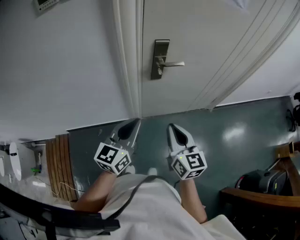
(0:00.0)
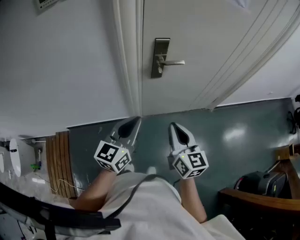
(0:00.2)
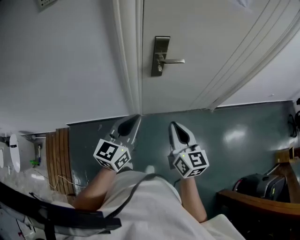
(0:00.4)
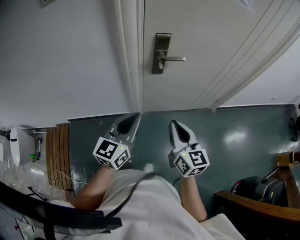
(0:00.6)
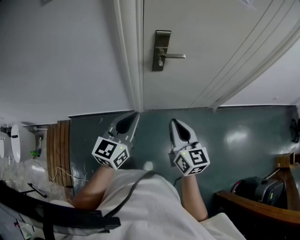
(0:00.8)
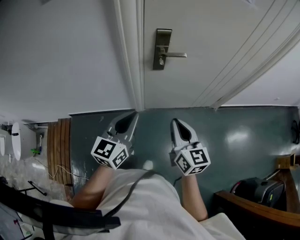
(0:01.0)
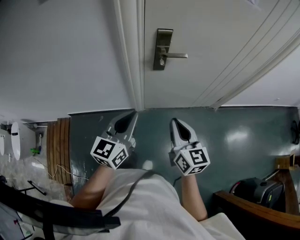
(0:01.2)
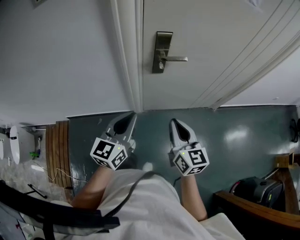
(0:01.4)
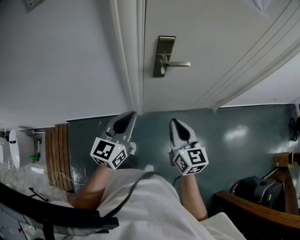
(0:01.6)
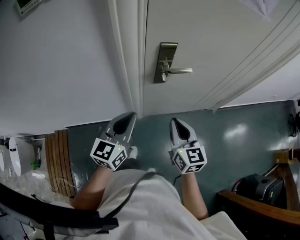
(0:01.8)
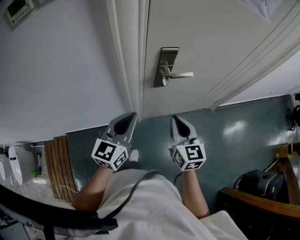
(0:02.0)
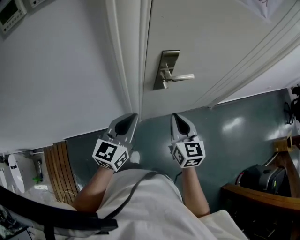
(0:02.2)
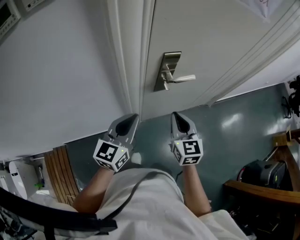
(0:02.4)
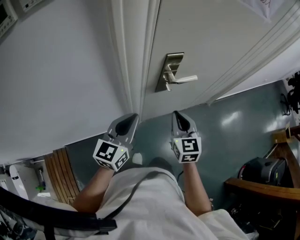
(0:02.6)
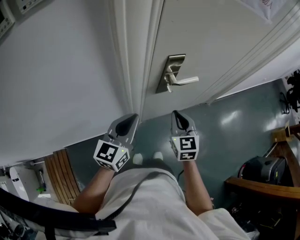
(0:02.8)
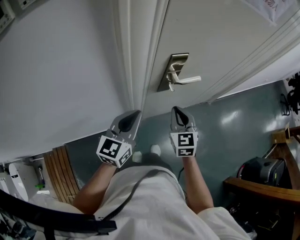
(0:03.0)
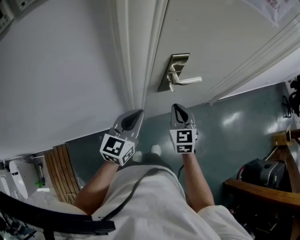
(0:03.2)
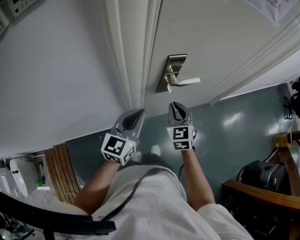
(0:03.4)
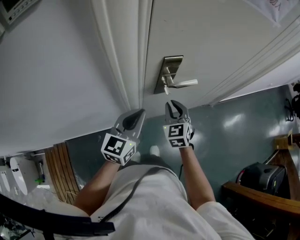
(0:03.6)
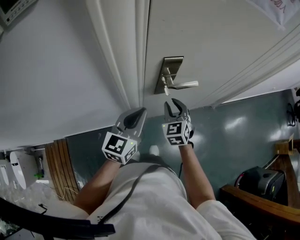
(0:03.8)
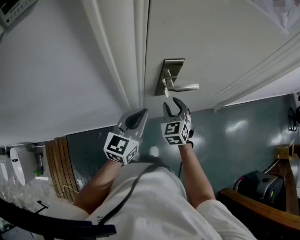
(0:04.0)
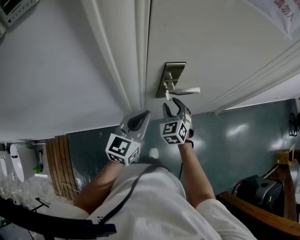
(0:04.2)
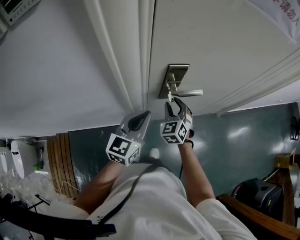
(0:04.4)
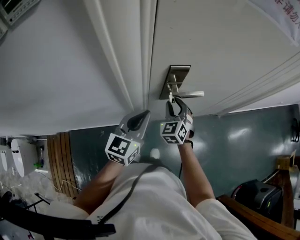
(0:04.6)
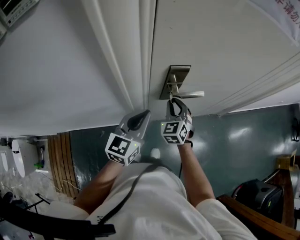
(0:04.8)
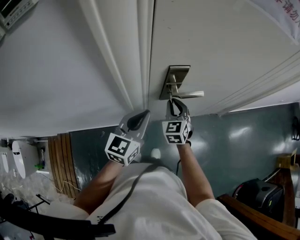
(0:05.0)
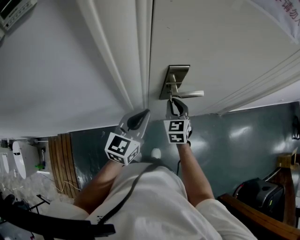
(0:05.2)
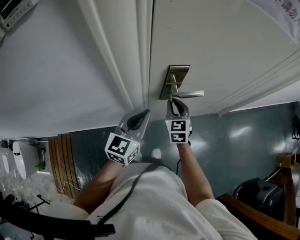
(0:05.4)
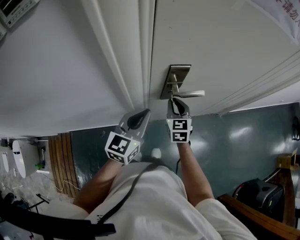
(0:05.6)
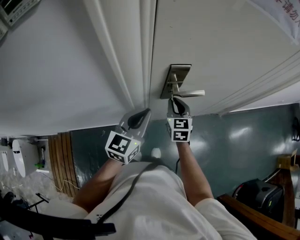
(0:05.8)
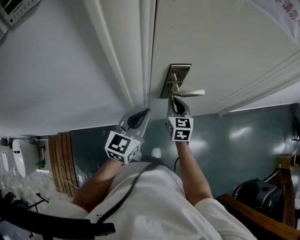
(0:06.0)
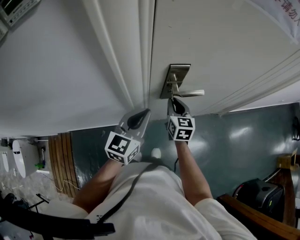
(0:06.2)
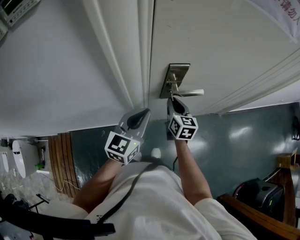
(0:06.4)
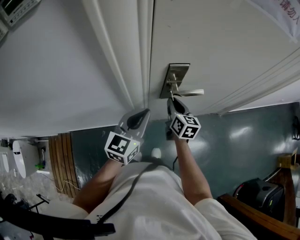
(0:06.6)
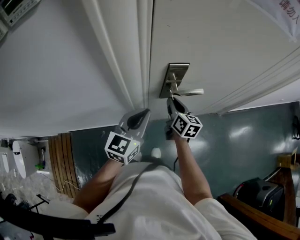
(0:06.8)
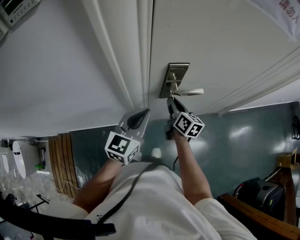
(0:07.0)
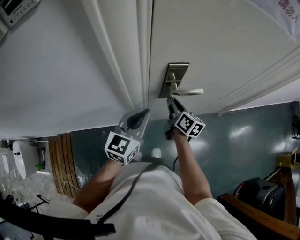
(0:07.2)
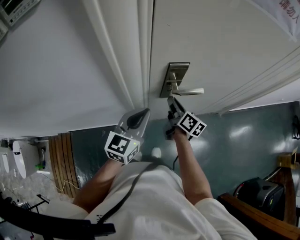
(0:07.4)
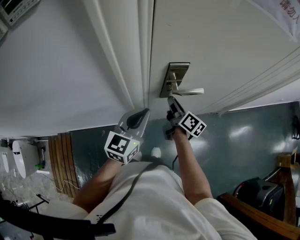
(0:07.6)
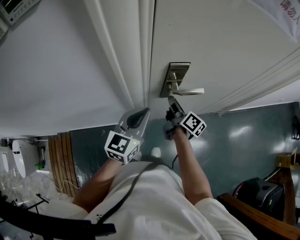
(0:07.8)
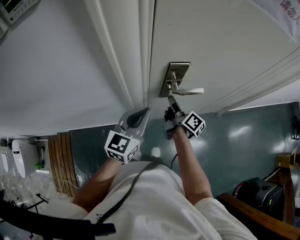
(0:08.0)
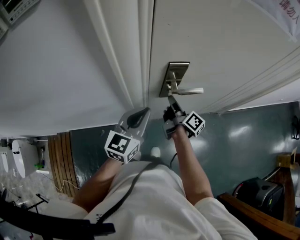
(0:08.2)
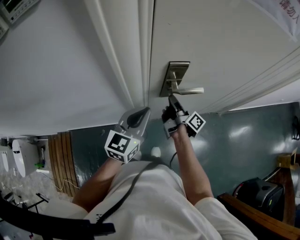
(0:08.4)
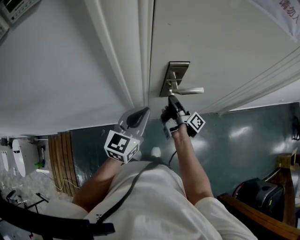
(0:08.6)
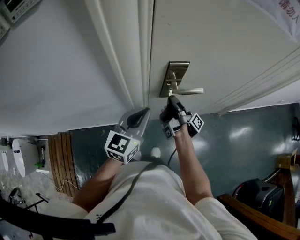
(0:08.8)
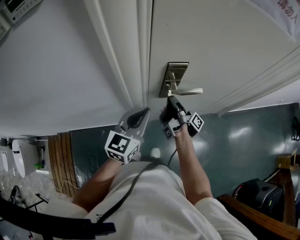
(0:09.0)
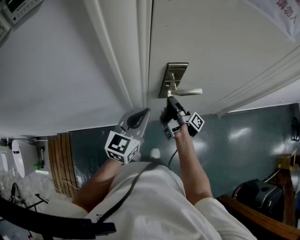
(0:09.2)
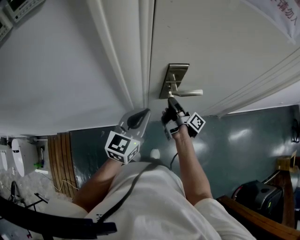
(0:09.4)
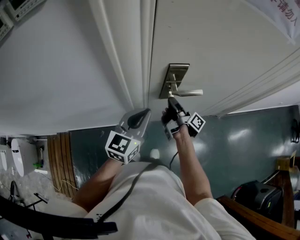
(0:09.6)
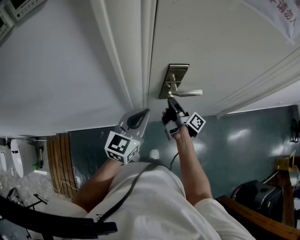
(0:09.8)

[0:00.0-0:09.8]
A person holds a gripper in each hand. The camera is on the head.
0:00.0 to 0:01.4: The right gripper ends up some 5 cm from where it was.
0:01.4 to 0:02.8: The two grippers go roughly 20 cm forward and to the left. The right gripper rotates approximately 30 degrees.
0:02.8 to 0:04.2: The right gripper travels forward and downward by about 10 cm, changes its angle by about 30 degrees, and opens, while the left gripper goes approximately 10 cm to the right and forward.
0:04.2 to 0:05.6: The right gripper swivels roughly 20 degrees, and closes.
0:05.6 to 0:07.0: The right gripper twists about 40 degrees clockwise, seen from behind.
0:07.0 to 0:08.4: The right gripper rolls clockwise, seen from behind, by some 50 degrees.

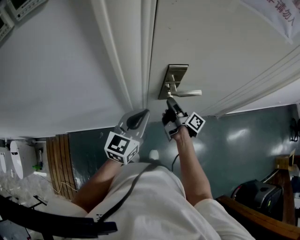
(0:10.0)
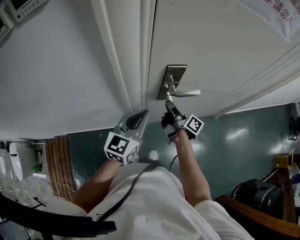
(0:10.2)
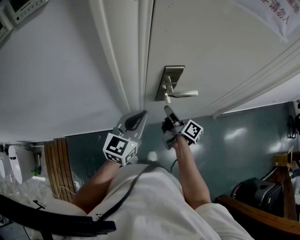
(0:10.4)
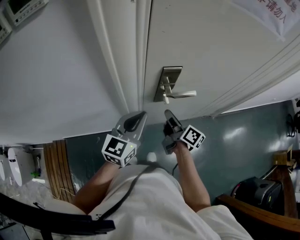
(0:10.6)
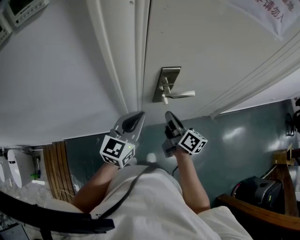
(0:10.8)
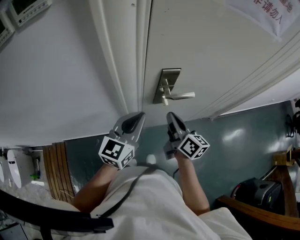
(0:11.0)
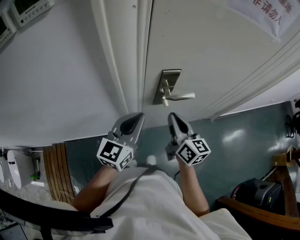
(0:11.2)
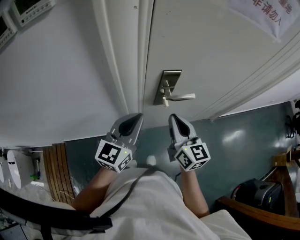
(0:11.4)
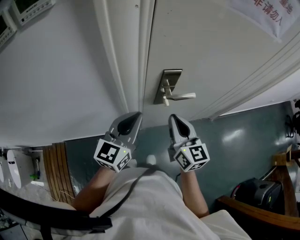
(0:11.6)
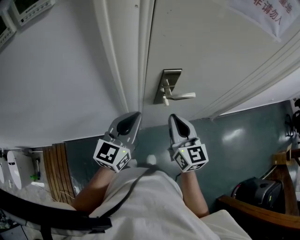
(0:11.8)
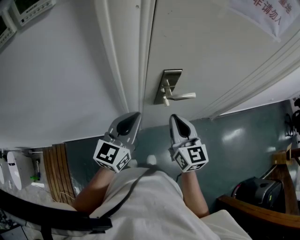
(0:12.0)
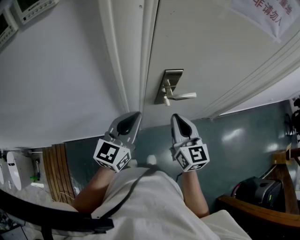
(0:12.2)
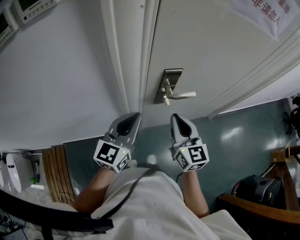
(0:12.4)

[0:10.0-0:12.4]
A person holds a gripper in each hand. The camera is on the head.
0:10.0 to 0:11.2: The right gripper goes about 15 cm upward and backward, rolls counterclockwise, seen from behind, by approximately 60 degrees, and closes its fingers.
0:11.2 to 0:12.4: The right gripper changes its angle by roughly 20 degrees.

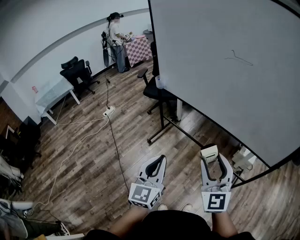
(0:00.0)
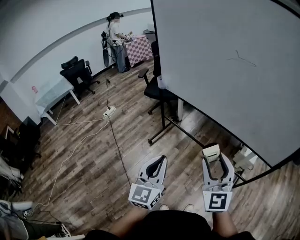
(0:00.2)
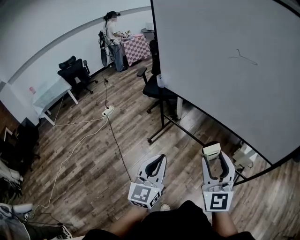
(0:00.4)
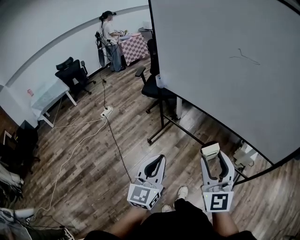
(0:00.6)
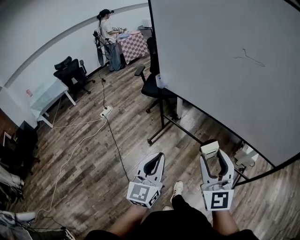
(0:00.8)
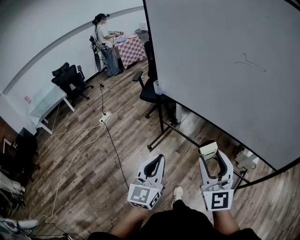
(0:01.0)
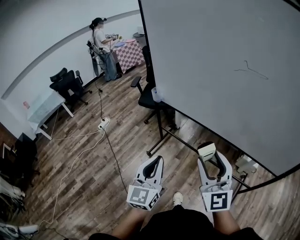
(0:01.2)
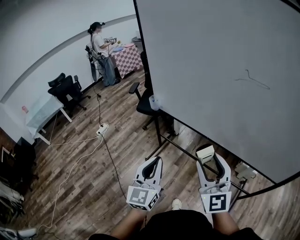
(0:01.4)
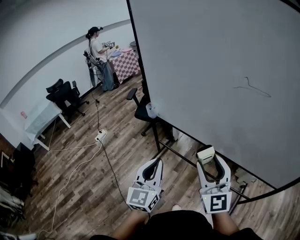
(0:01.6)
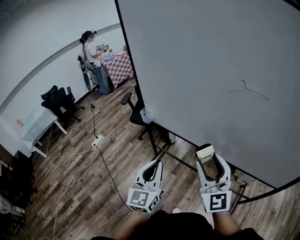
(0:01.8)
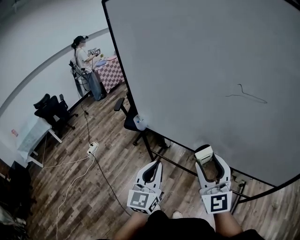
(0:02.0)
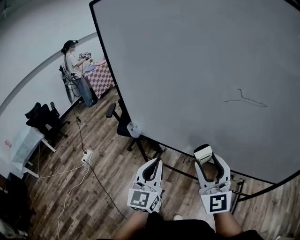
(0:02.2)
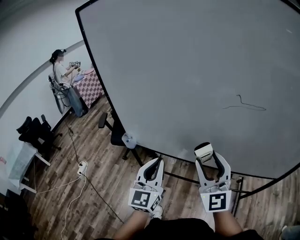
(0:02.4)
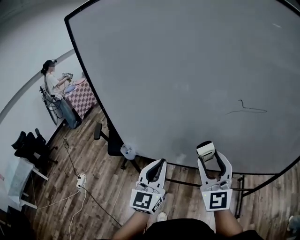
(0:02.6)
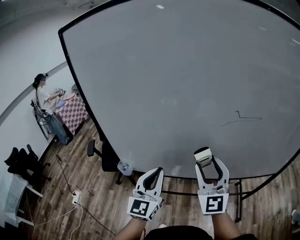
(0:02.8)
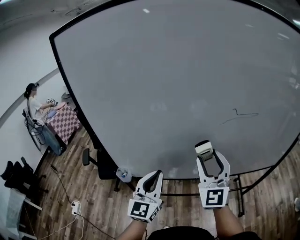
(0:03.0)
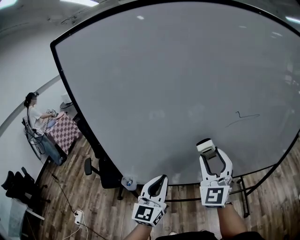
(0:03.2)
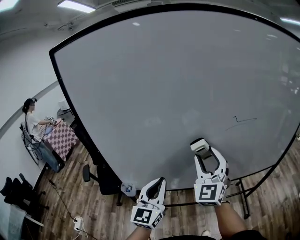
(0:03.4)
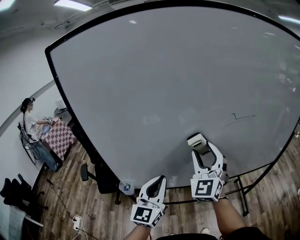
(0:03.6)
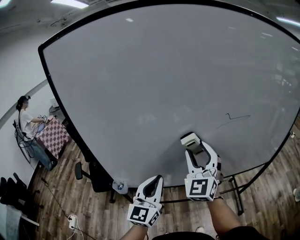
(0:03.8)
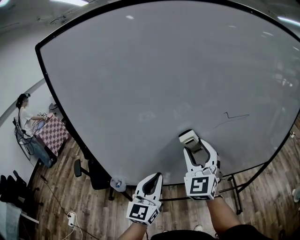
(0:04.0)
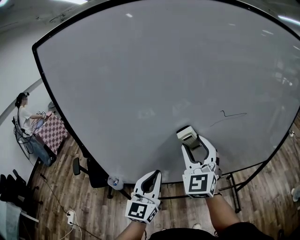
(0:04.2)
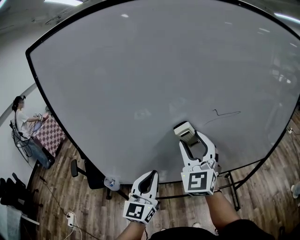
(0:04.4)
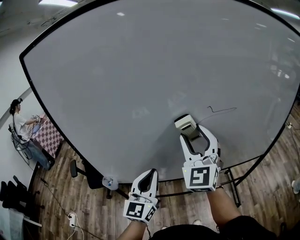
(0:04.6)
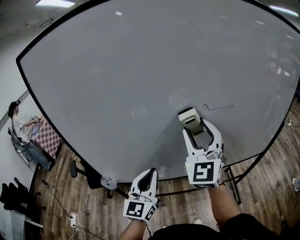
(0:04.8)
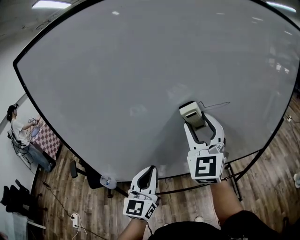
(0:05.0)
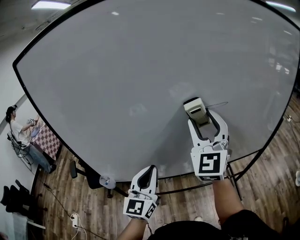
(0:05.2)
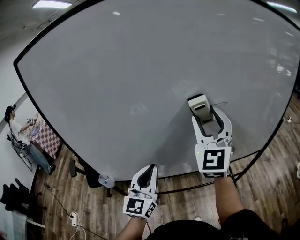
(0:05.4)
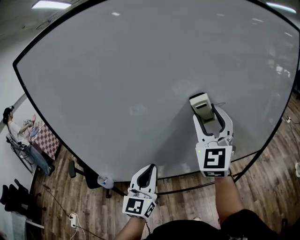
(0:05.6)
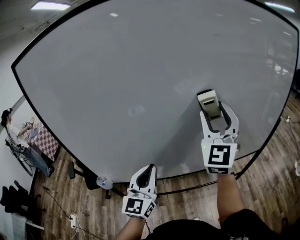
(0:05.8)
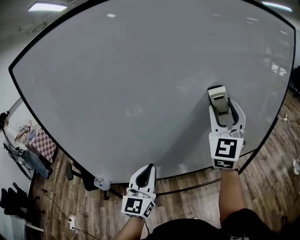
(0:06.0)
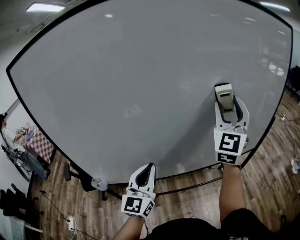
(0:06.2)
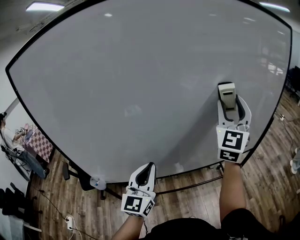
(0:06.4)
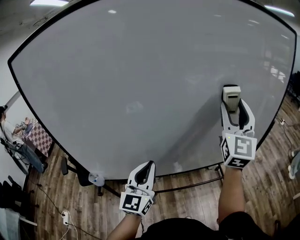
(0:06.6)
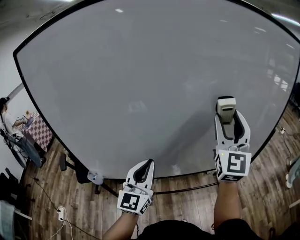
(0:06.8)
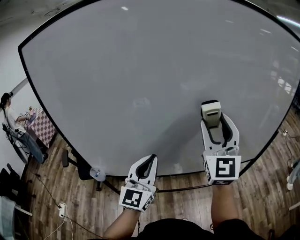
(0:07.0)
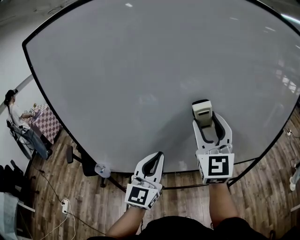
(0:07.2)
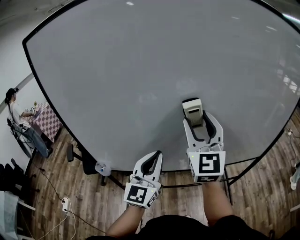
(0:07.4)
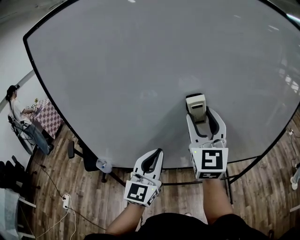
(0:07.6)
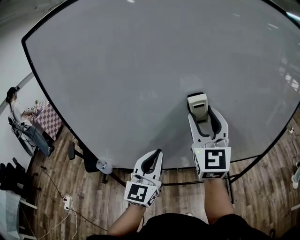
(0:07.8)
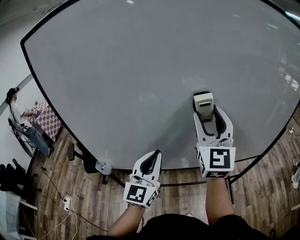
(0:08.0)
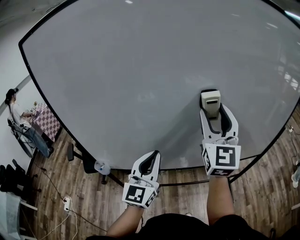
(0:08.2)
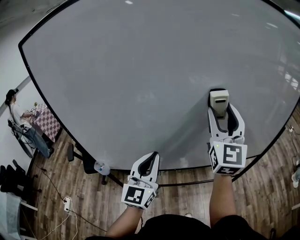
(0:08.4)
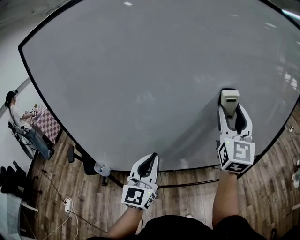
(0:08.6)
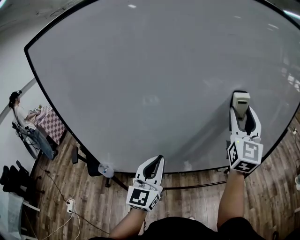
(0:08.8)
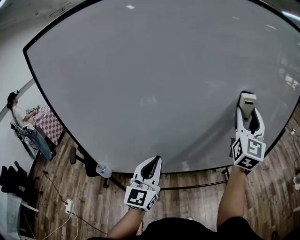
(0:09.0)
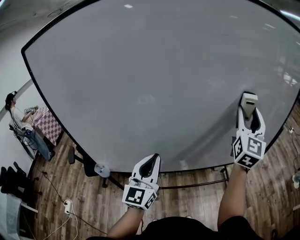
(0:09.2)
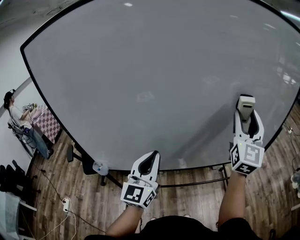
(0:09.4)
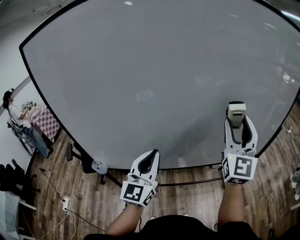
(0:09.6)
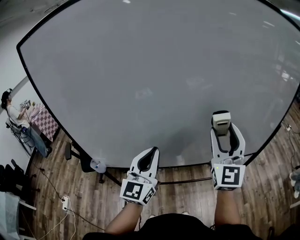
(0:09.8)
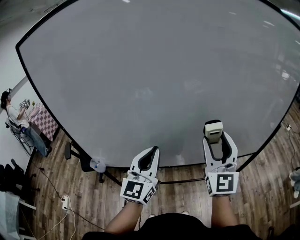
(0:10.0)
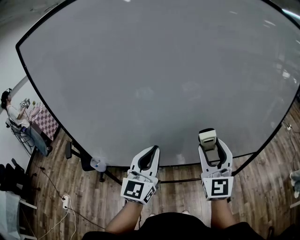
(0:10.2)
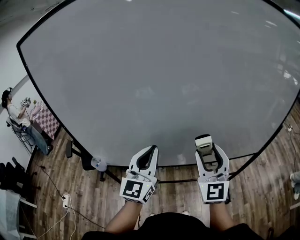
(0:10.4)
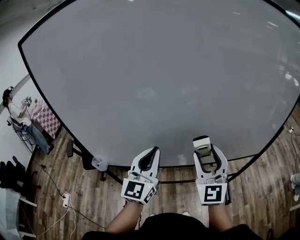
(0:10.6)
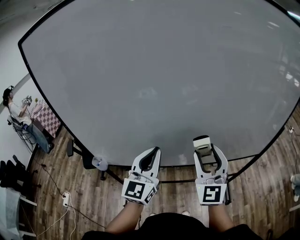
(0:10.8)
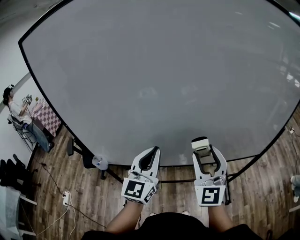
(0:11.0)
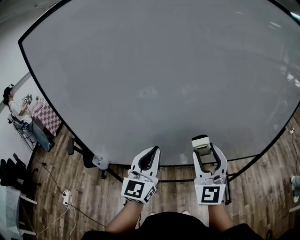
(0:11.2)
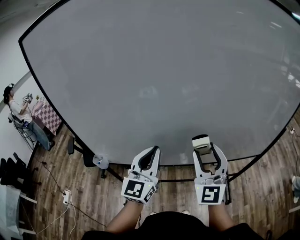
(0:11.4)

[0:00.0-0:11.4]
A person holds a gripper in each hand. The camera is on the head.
0:00.0 to 0:01.4: Both grippers travel together forward, approximately 20 cm.
0:01.4 to 0:02.8: The right gripper moves about 25 cm, and swivels approximately 30 degrees. Meanwhile the left gripper ends up roughly 30 cm from where it was, and swivels about 30 degrees.
0:02.8 to 0:04.2: The right gripper heads forward, covering some 10 cm.
0:04.2 to 0:05.6: The right gripper heads to the right and upward, covering roughly 15 cm. Meanwhile the left gripper moves to the right, approximately 10 cm.
0:05.6 to 0:07.2: The right gripper reaches about 15 cm to the right, then returns.
0:07.2 to 0:08.6: The right gripper shifts roughly 10 cm to the right.
0:08.6 to 0:10.0: The right gripper heads downward and backward, covering approximately 10 cm, and reaches approximately 10 cm to the right, then returns.
0:10.0 to 0:11.4: The right gripper is displaced to the left by roughly 5 cm.
